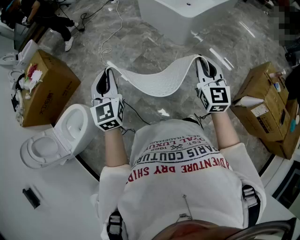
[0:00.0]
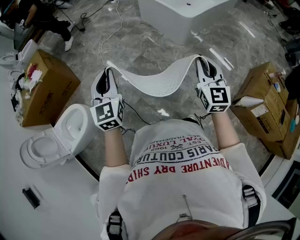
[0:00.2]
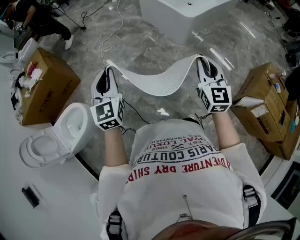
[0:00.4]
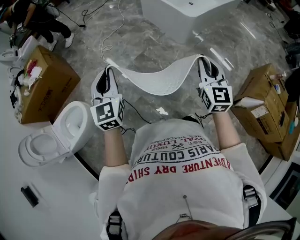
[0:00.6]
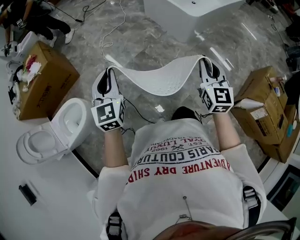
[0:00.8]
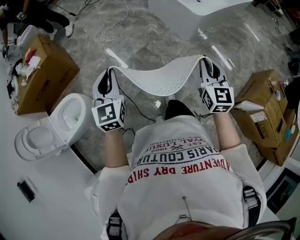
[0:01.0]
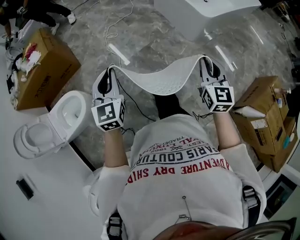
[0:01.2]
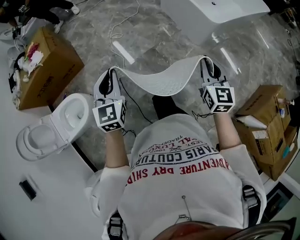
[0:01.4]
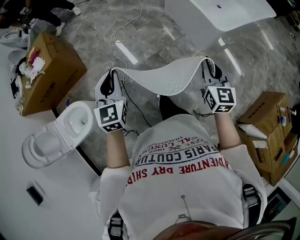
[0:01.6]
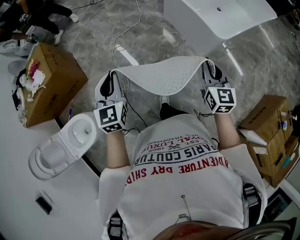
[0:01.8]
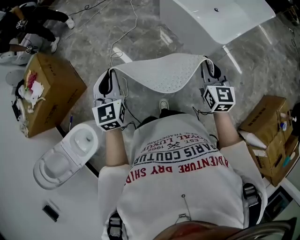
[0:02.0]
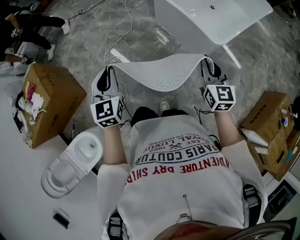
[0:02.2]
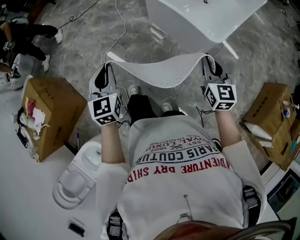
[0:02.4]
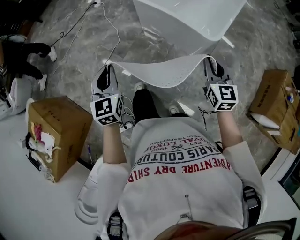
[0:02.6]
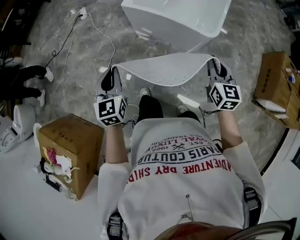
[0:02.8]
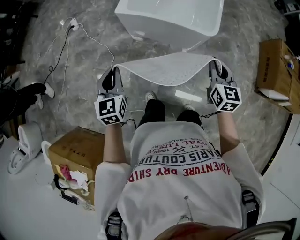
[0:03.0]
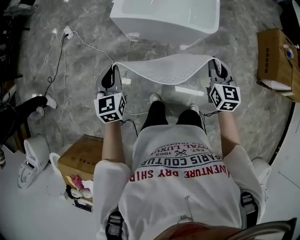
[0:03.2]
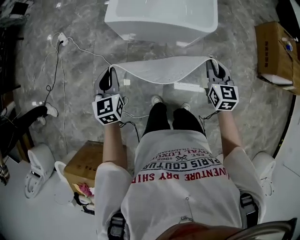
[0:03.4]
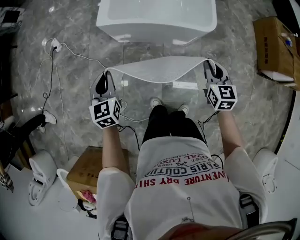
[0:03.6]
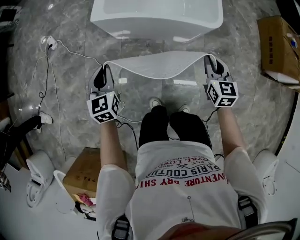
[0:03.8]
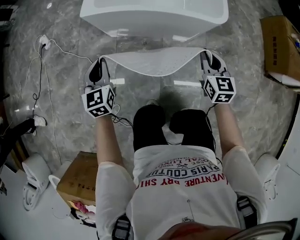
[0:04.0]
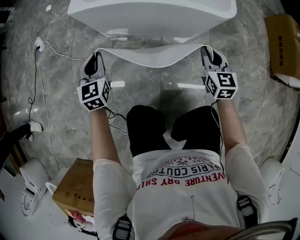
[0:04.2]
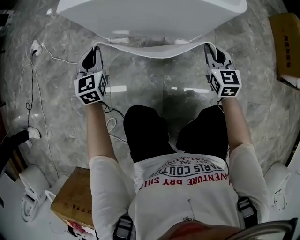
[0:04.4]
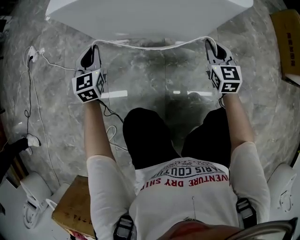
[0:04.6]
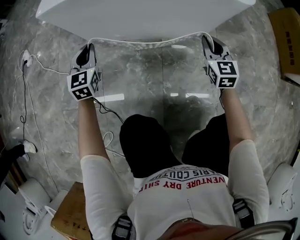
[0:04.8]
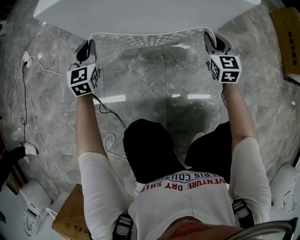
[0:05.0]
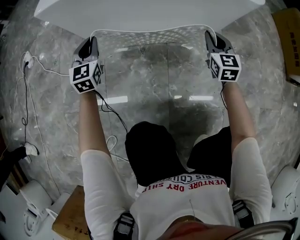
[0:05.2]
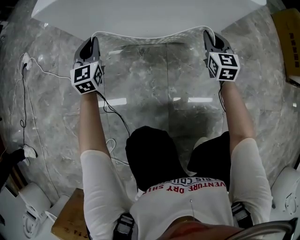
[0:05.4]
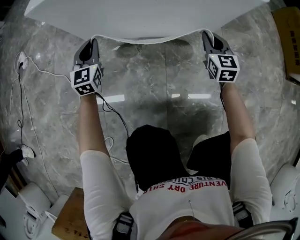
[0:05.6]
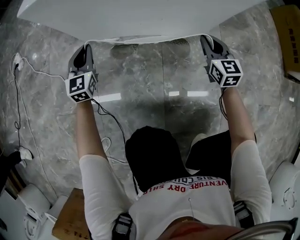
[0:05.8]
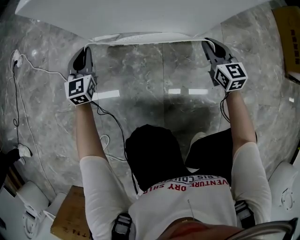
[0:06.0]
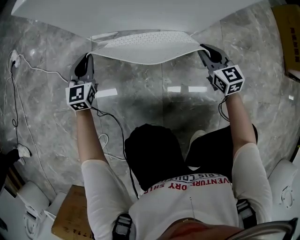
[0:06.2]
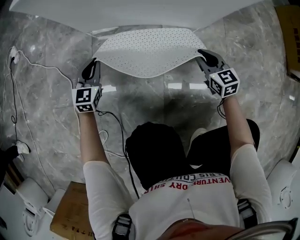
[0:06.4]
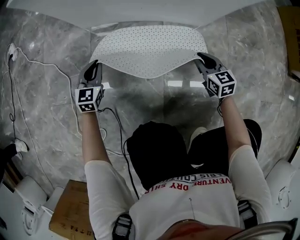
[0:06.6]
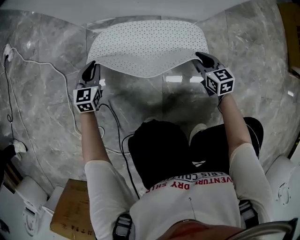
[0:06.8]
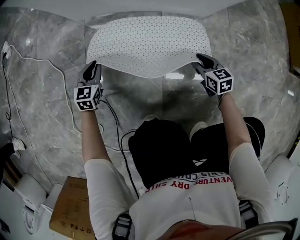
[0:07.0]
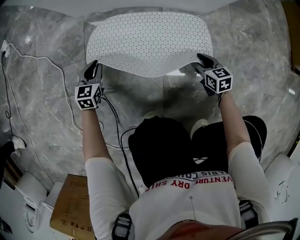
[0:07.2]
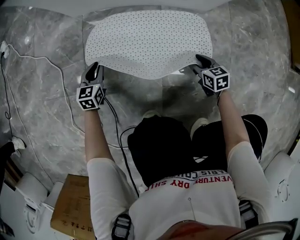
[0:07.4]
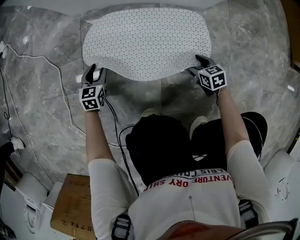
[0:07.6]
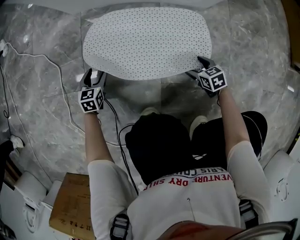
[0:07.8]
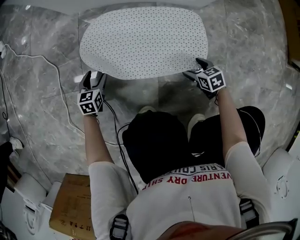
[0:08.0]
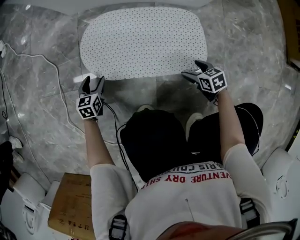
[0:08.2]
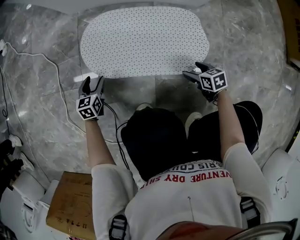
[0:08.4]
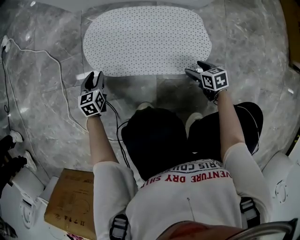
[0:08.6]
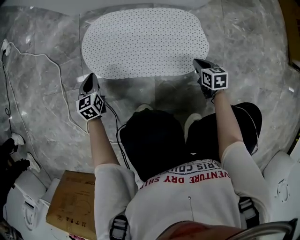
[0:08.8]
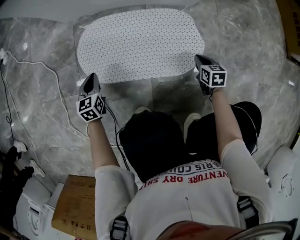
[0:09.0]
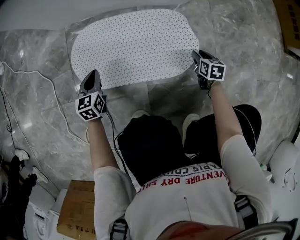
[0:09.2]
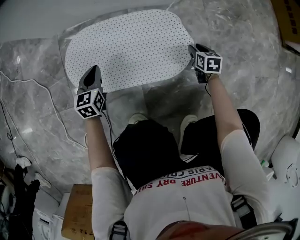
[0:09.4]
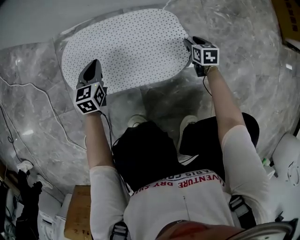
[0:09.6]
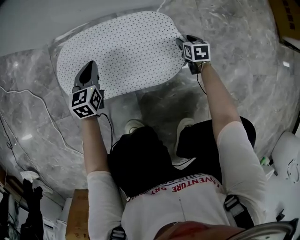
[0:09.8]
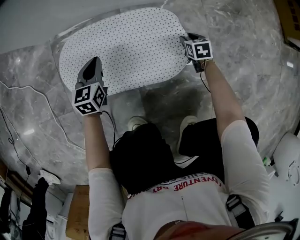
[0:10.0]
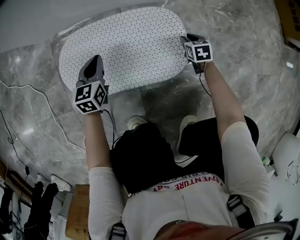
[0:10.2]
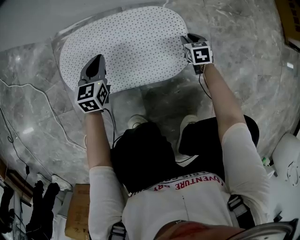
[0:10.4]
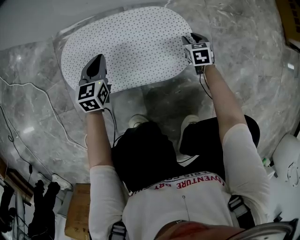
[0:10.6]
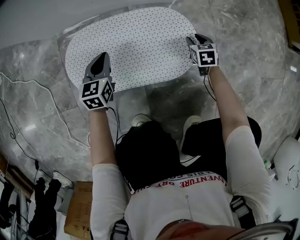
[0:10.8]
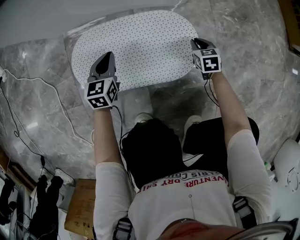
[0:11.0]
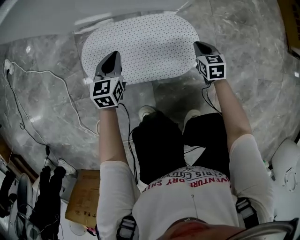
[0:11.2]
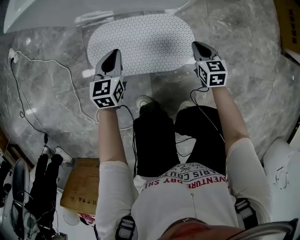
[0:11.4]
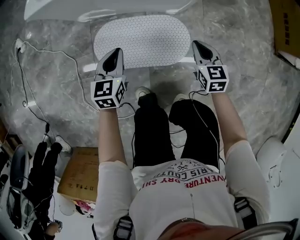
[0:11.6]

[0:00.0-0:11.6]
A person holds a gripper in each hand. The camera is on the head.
0:00.0 to 0:01.4: The left gripper travels forward, to the left and downward by approximately 15 cm; the right gripper travels forward and downward by approximately 15 cm.
0:01.4 to 0:02.8: The two grippers travel together, about 50 cm. The left gripper changes its angle by about 30 degrees, while the right gripper turns by some 40 degrees.
0:02.8 to 0:04.4: The left gripper travels downward and forward by roughly 50 cm, and turns by roughly 20 degrees, while the right gripper goes about 40 cm downward.
0:04.4 to 0:05.8: The grippers both shift downward by some 15 cm.
0:05.8 to 0:07.2: The two grippers go roughly 25 cm downward and backward. The left gripper swivels about 30 degrees. The right gripper turns by roughly 30 degrees, and opens its fingers.
0:07.2 to 0:08.8: Both grippers move backward, approximately 5 cm. The left gripper opens, then closes again, while the right gripper closes.
0:08.8 to 0:10.2: The right gripper goes roughly 15 cm forward, to the right and downward. Meanwhile the left gripper goes some 25 cm to the right and forward, and changes its angle by about 20 degrees.
0:10.2 to 0:11.6: Both grippers travel together upward, approximately 35 cm. The right gripper rotates some 20 degrees.

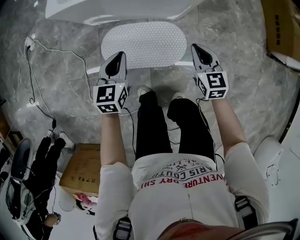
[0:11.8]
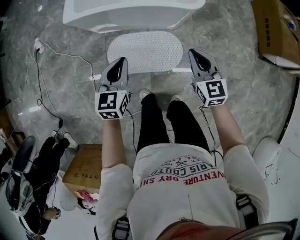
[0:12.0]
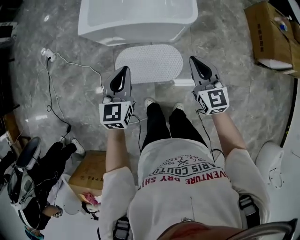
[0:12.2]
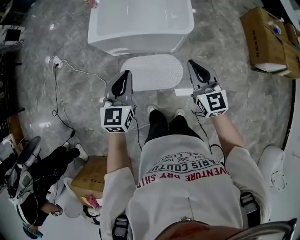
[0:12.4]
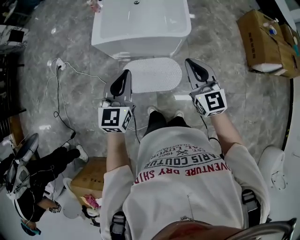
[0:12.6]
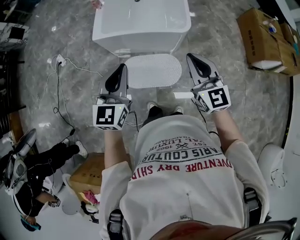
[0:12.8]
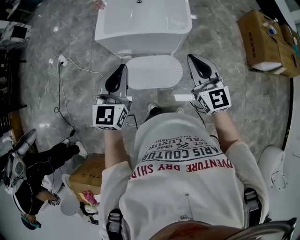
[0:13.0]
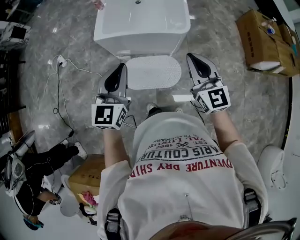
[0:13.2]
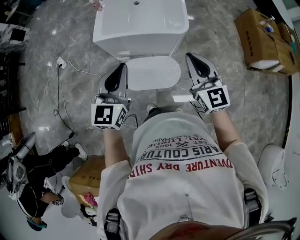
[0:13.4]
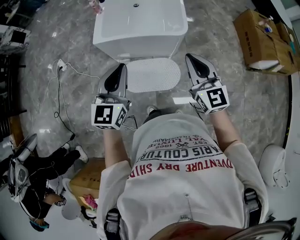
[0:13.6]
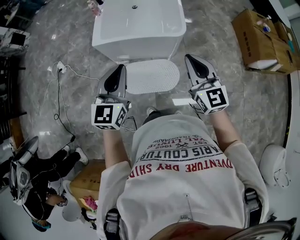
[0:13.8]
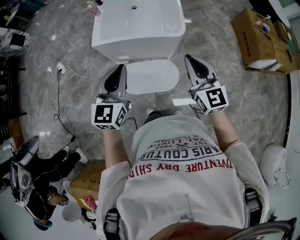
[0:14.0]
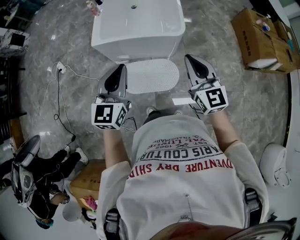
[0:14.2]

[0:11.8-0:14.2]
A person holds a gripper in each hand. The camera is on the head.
0:11.8 to 0:13.0: The two grippers go approximately 50 cm upward. The left gripper rotates some 30 degrees, while the right gripper changes its angle by some 30 degrees.
0:13.0 to 0:14.2: The grippers move only a little.

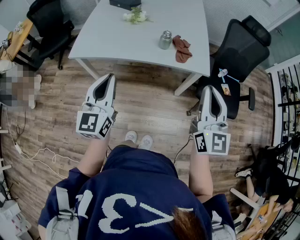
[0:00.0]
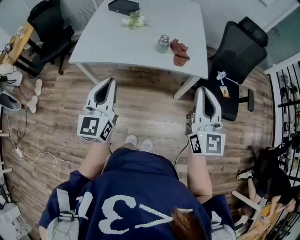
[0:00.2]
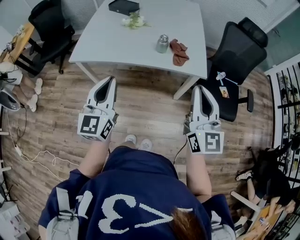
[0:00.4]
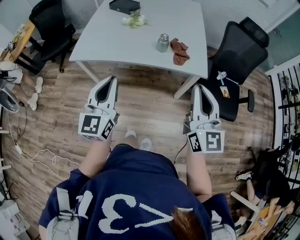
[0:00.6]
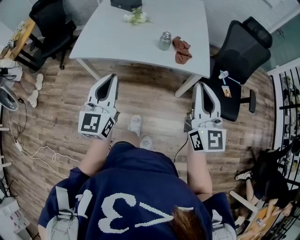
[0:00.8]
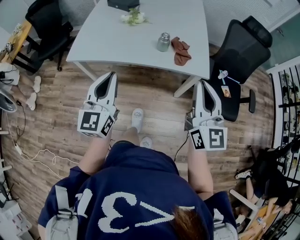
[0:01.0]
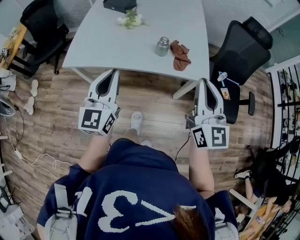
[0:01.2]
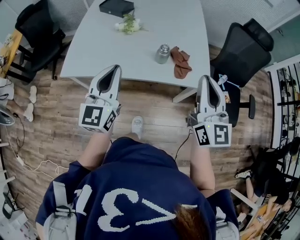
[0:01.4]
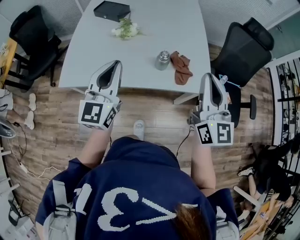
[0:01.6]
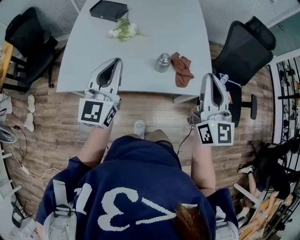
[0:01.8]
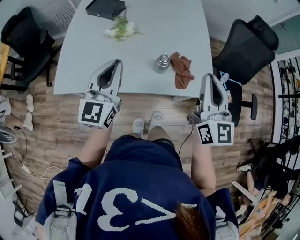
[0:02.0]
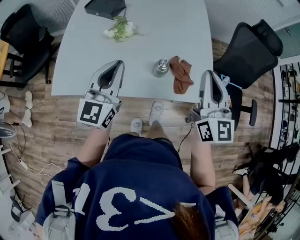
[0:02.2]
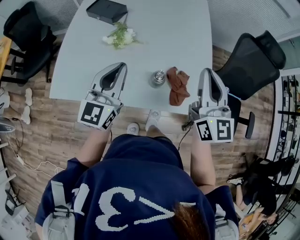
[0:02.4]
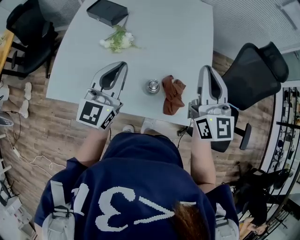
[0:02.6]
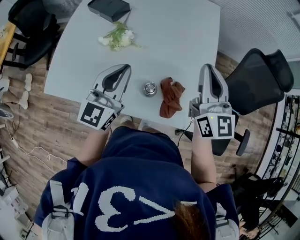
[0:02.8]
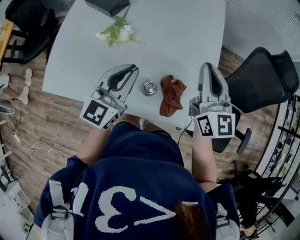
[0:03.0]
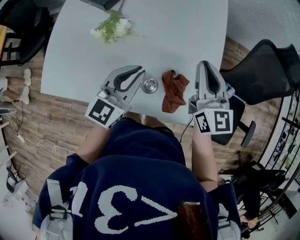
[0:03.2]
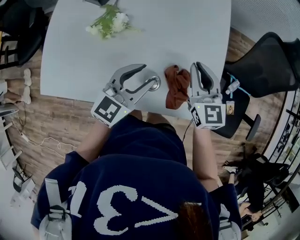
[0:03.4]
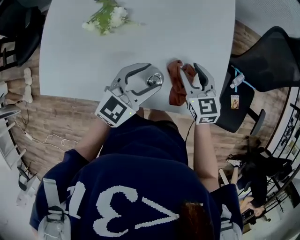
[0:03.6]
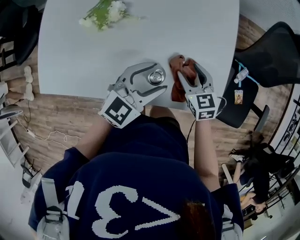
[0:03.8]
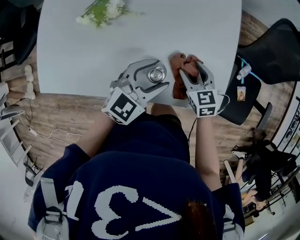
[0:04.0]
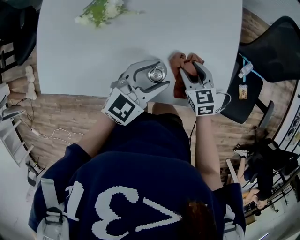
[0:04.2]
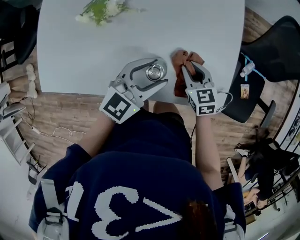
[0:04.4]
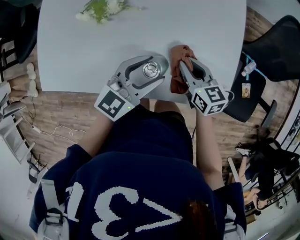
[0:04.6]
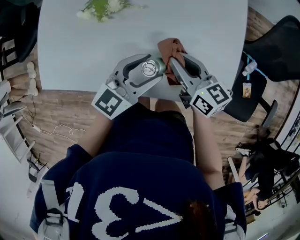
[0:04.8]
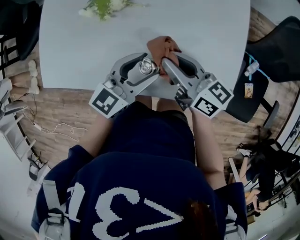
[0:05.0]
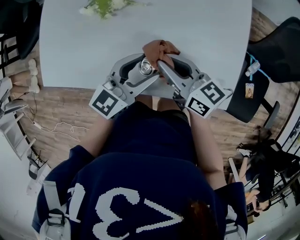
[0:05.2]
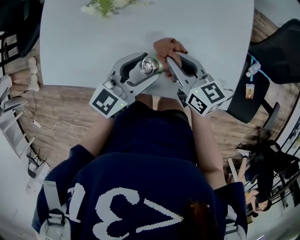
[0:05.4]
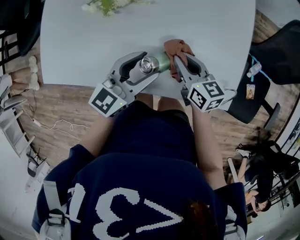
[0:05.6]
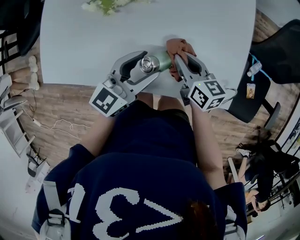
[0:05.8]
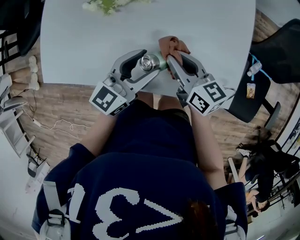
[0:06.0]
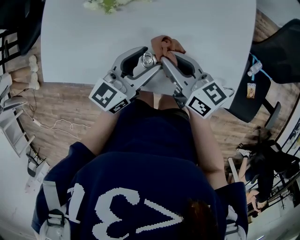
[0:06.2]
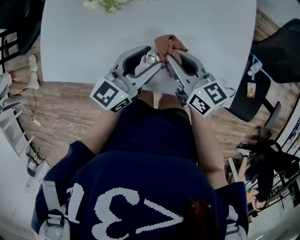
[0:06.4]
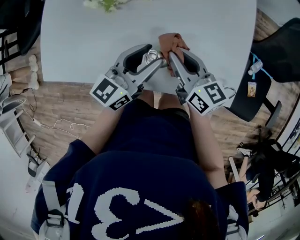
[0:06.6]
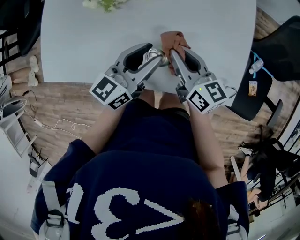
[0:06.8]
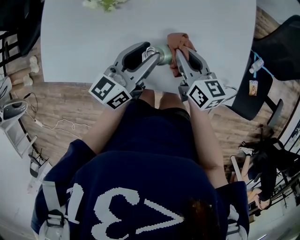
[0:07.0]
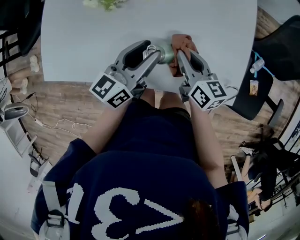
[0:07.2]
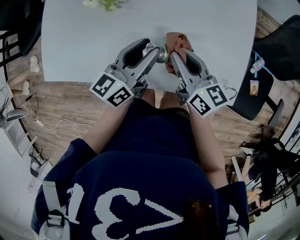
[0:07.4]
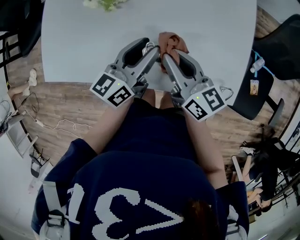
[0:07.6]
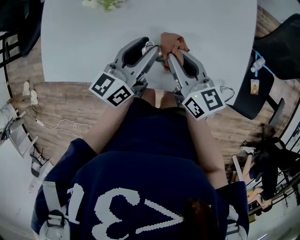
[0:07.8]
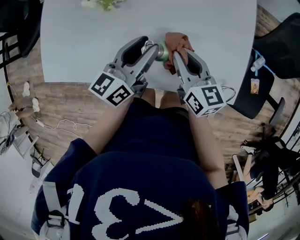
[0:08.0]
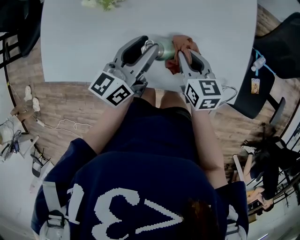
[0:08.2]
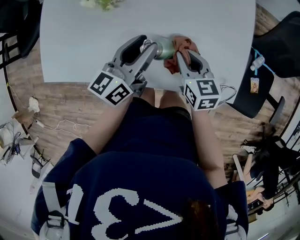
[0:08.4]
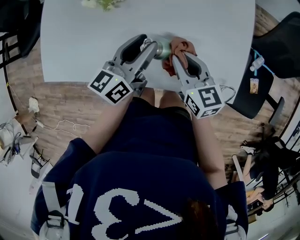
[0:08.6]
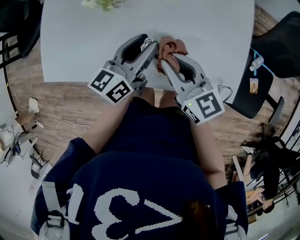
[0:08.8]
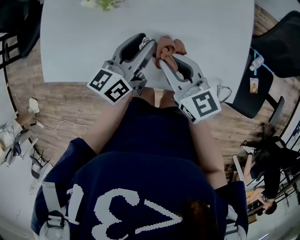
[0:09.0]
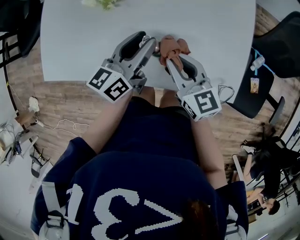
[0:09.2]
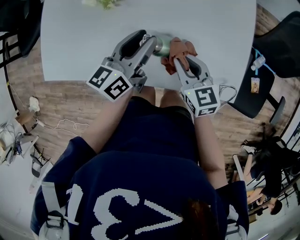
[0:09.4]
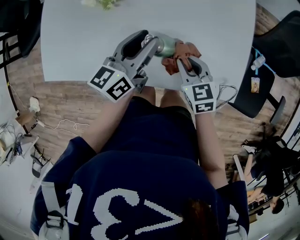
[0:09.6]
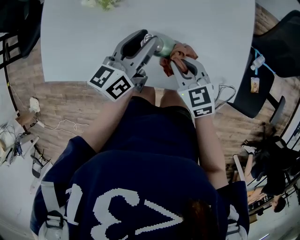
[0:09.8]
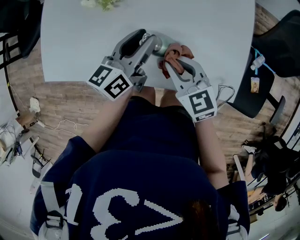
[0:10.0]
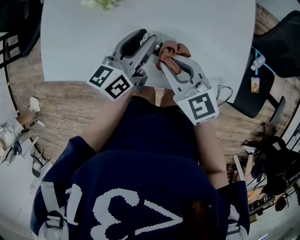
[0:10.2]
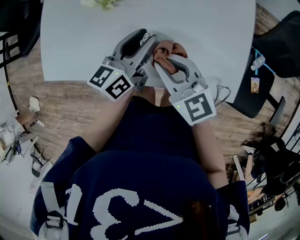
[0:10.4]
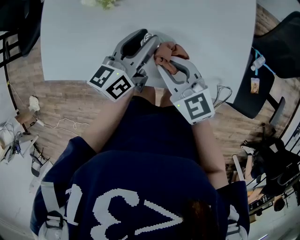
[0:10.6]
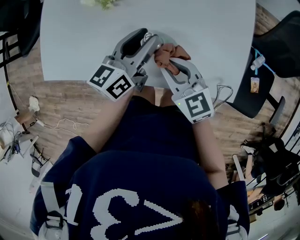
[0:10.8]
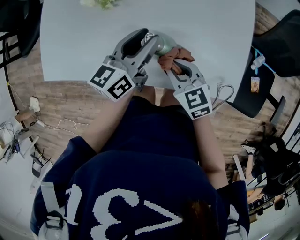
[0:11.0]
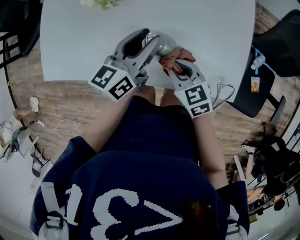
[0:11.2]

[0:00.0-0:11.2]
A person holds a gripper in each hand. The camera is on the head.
0:00.0 to 0:01.6: The two grippers go roughly 20 cm forward.
0:01.6 to 0:03.2: The left gripper goes roughly 25 cm forward, to the right and downward, and changes its angle by some 20 degrees. Meanwhile the right gripper moves forward and downward, roughly 30 cm, and swivels roughly 20 degrees.
0:03.2 to 0:04.8: The right gripper travels downward, to the left and backward by approximately 20 cm, swivels approximately 40 degrees, and opens, then closes once more, while the left gripper goes approximately 10 cm downward, and opens.
0:04.8 to 0:06.4: The right gripper moves approximately 5 cm downward and comes back.
0:06.4 to 0:08.0: The right gripper moves up and down over roughly 5 cm, changing direction 2 times.
0:08.0 to 0:09.6: The right gripper goes up and down, about 10 cm each way, reversing 2 times, and swivels about 30 degrees.
0:09.6 to 0:11.2: The right gripper goes upward and returns, about 10 cm each way.
